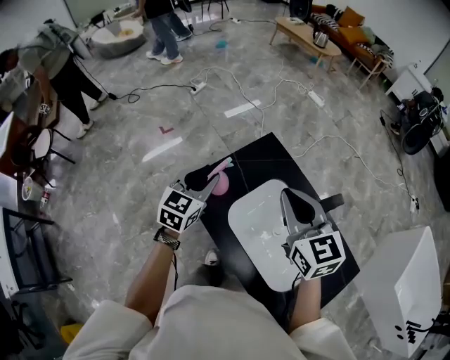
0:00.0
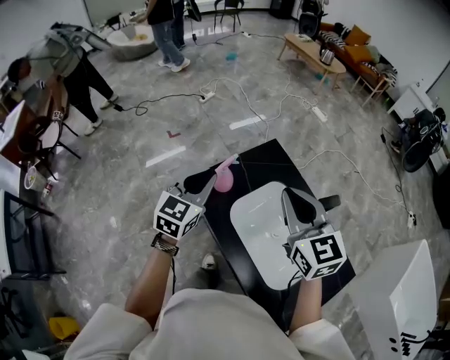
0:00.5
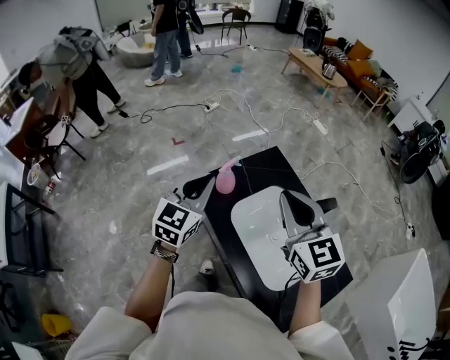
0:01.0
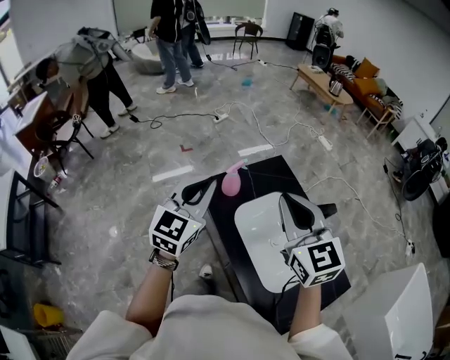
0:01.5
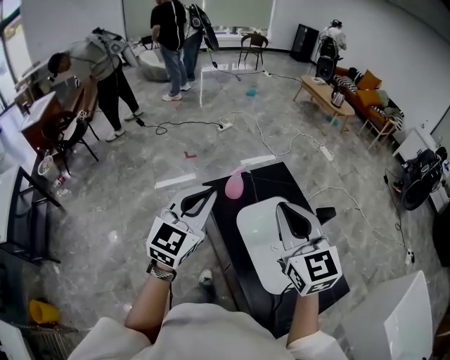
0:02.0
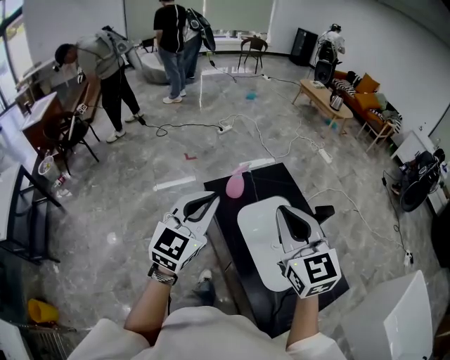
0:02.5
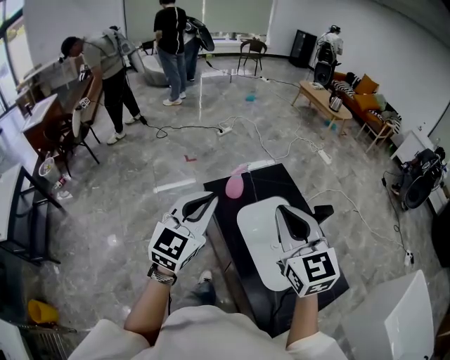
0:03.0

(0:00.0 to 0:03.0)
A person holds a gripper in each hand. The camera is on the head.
0:00.0 - 0:01.5: The two grippers go approximately 20 cm backward and upward. The left gripper swivels approximately 20 degrees, and closes.
0:01.5 - 0:03.0: The grippers both shift backward by about 10 cm.

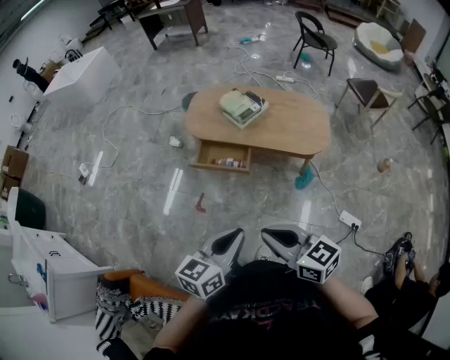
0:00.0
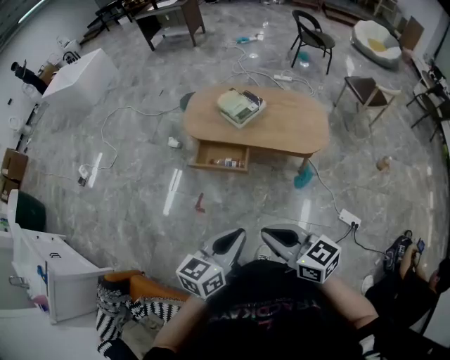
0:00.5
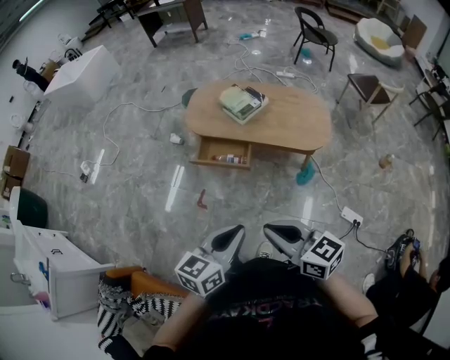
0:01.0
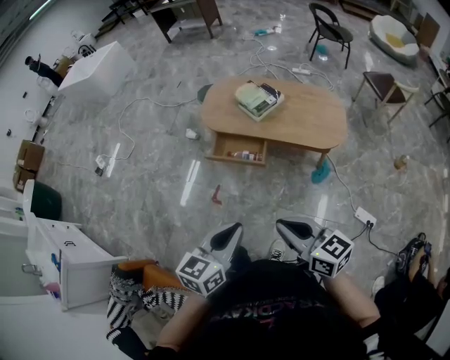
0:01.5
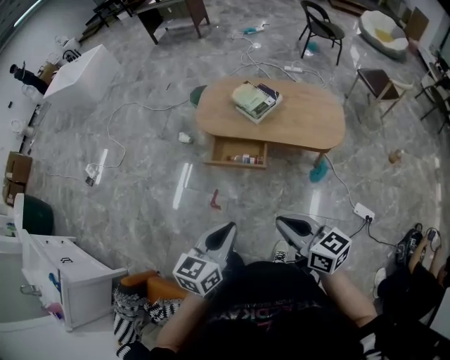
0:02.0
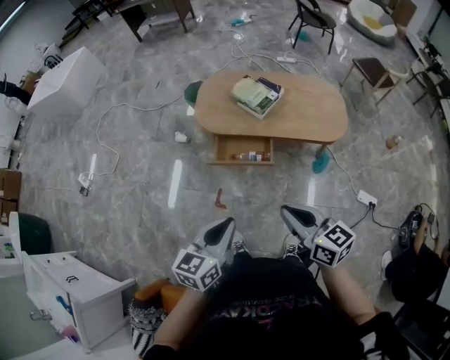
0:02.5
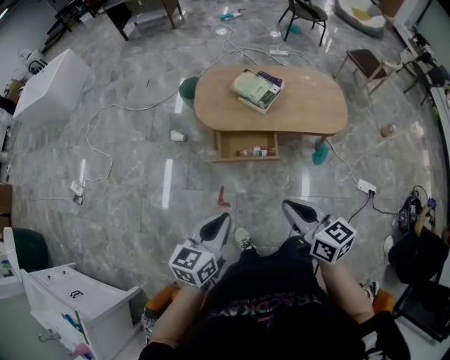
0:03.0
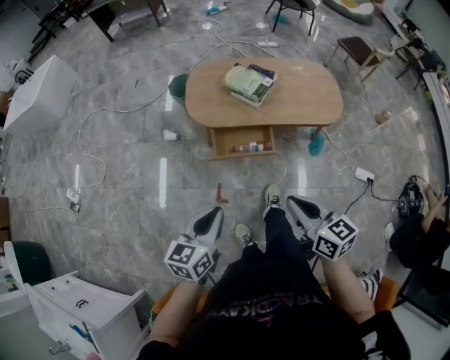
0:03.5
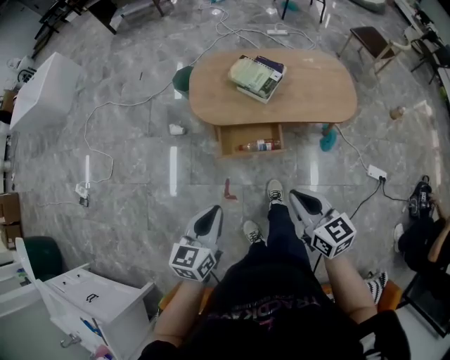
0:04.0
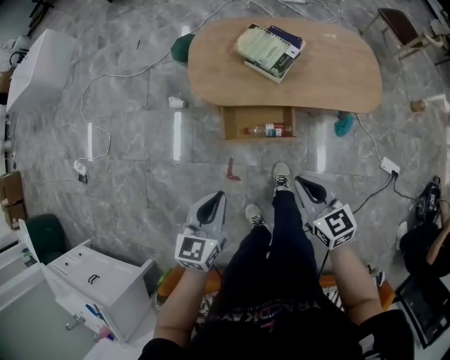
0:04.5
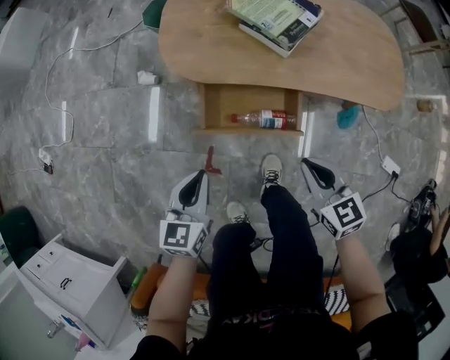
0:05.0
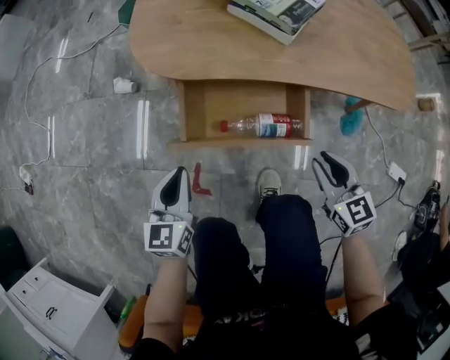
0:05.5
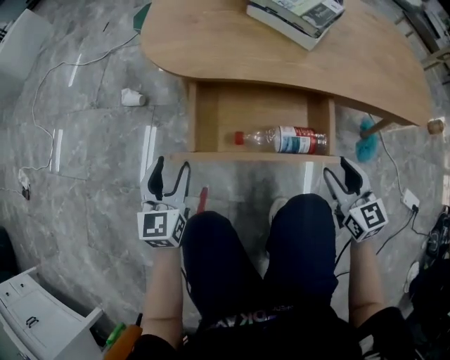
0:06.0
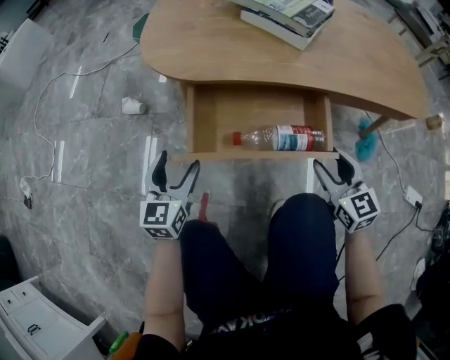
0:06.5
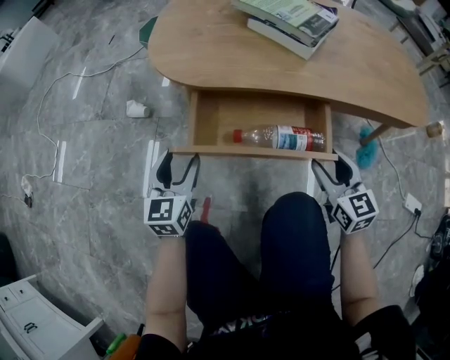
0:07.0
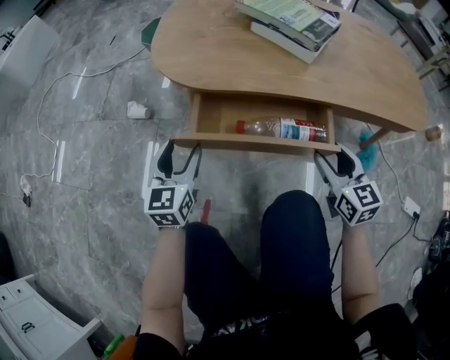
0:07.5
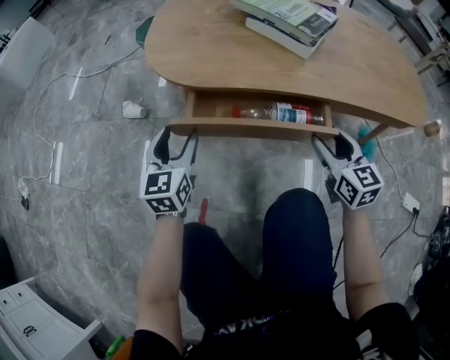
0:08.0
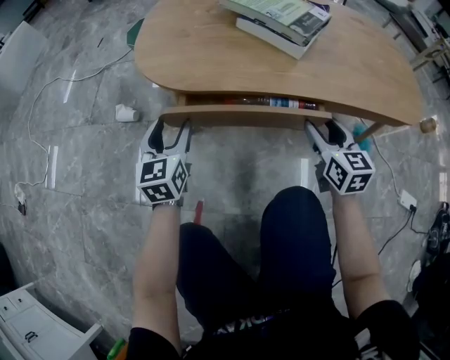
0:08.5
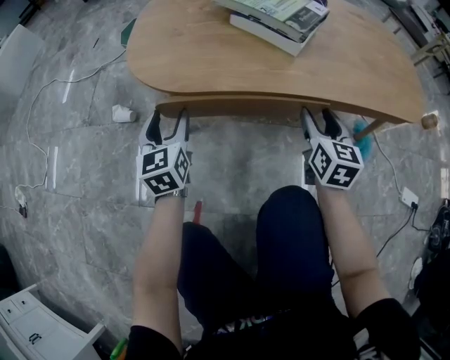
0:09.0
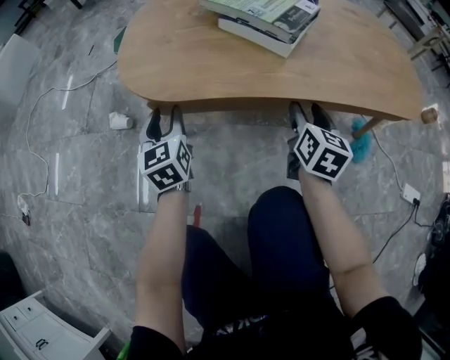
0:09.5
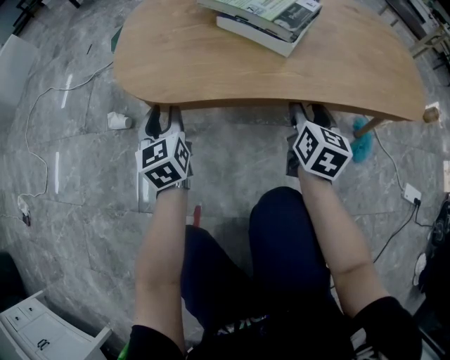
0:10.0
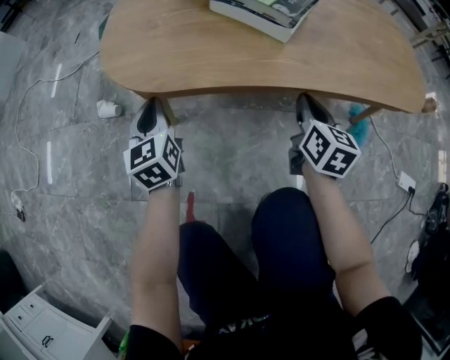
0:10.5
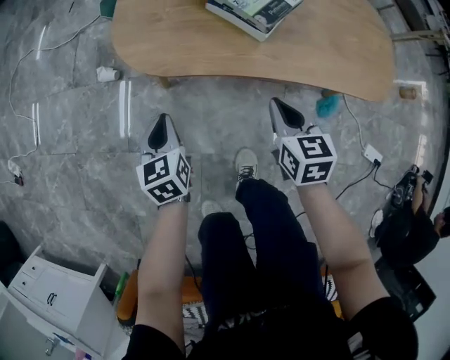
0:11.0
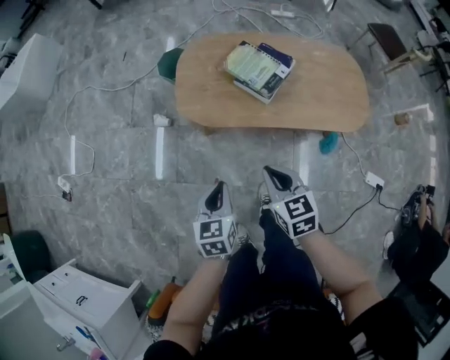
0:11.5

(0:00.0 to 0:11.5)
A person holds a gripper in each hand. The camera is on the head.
0:00.0 - 0:02.0: The right gripper heads forward, covering about 5 cm, while the left gripper goes roughly 15 cm to the left and forward.
0:02.0 - 0:04.0: The left gripper goes approximately 30 cm to the left, forward and downward, while the right gripper shifts about 20 cm forward, to the left and downward, and changes its angle by roughly 20 degrees.
0:04.0 - 0:06.0: Both grippers move downward, about 60 cm. The right gripper opens up. The left gripper rotates roughly 20 degrees, and opens its fingers.
0:06.0 - 0:07.5: The grippers both shift forward by approximately 5 cm.
0:07.5 - 0:09.5: The two grippers go approximately 10 cm forward. The right gripper turns by about 30 degrees.
0:09.5 - 0:11.5: The right gripper moves upward, approximately 40 cm, swivels some 40 degrees, and closes; the left gripper goes some 40 cm upward and backward, rotates about 20 degrees, and closes.

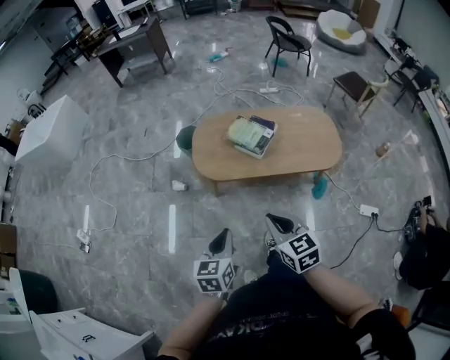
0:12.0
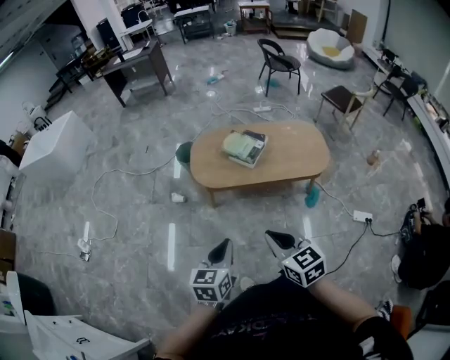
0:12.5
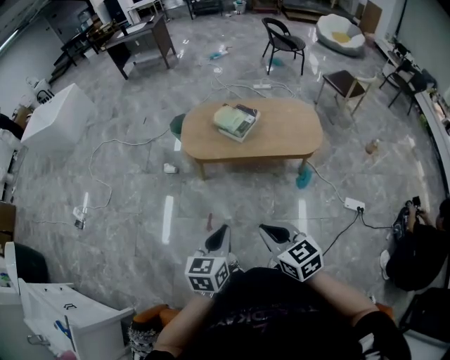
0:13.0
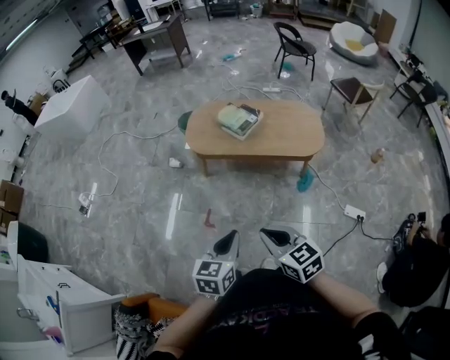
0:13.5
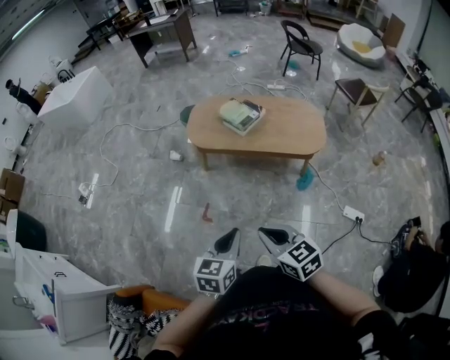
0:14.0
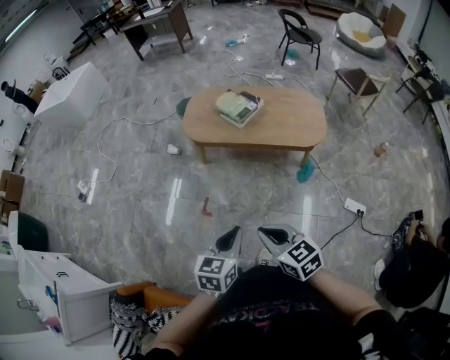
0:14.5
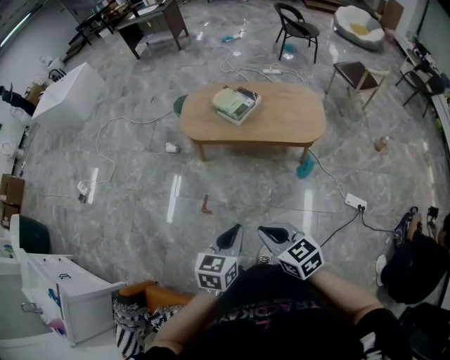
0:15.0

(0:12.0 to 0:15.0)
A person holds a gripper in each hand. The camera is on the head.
0:12.0 - 0:13.5: The grippers both shift backward and to the right by approximately 35 cm.
0:13.5 - 0:15.0: The left gripper changes place by approximately 5 cm.

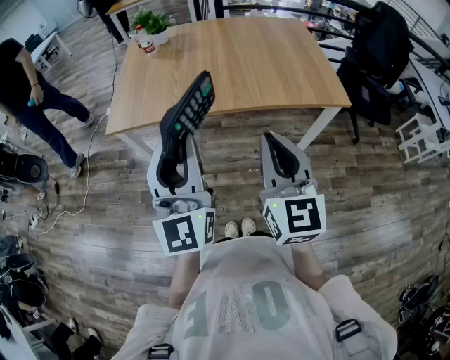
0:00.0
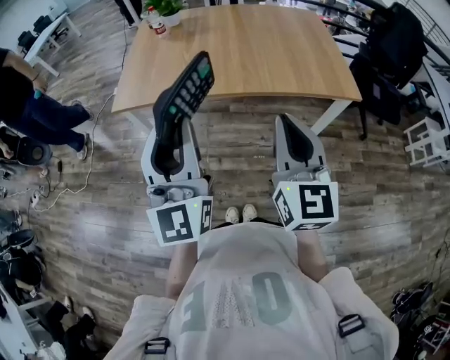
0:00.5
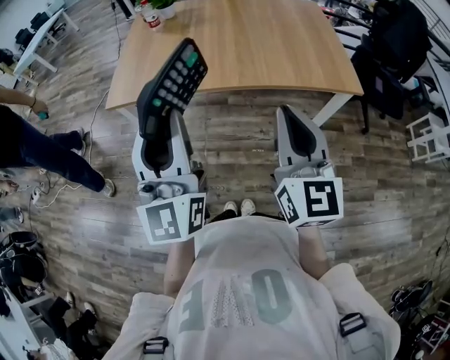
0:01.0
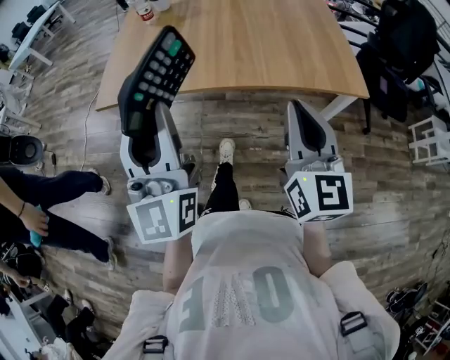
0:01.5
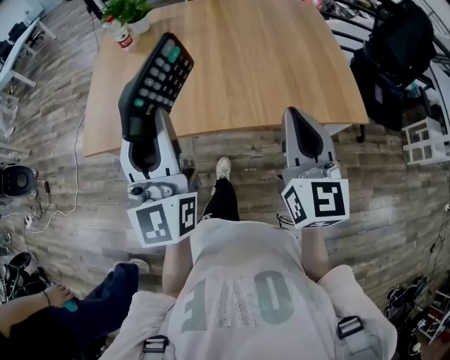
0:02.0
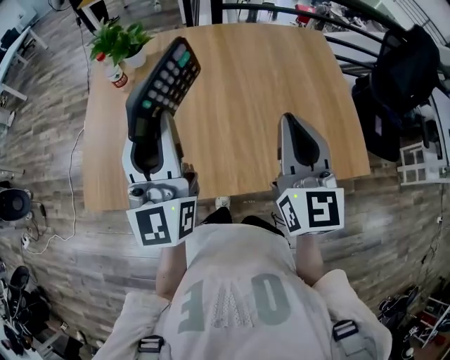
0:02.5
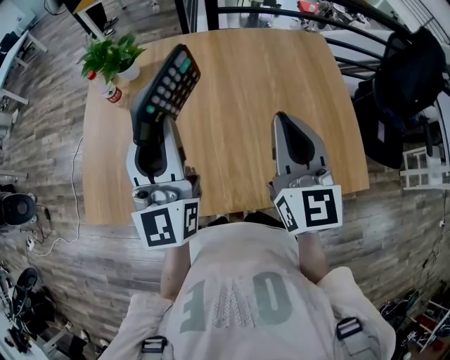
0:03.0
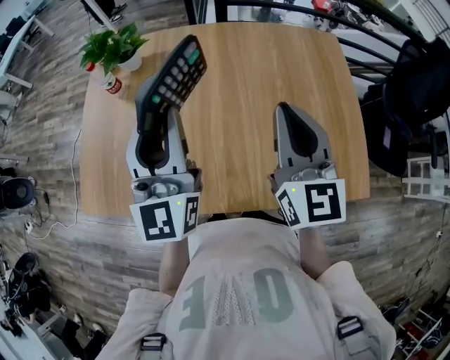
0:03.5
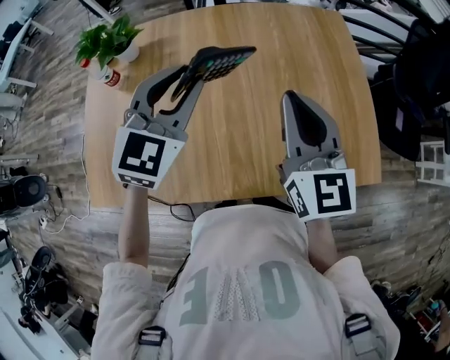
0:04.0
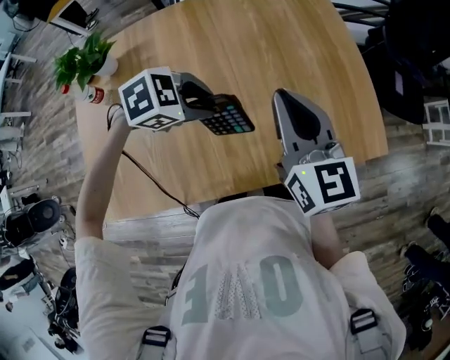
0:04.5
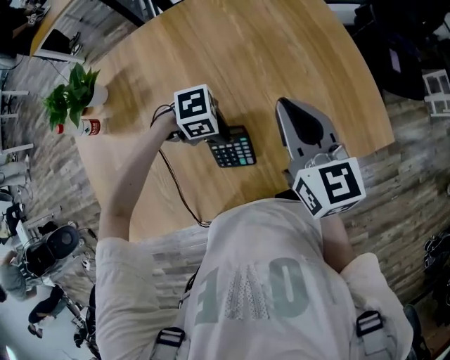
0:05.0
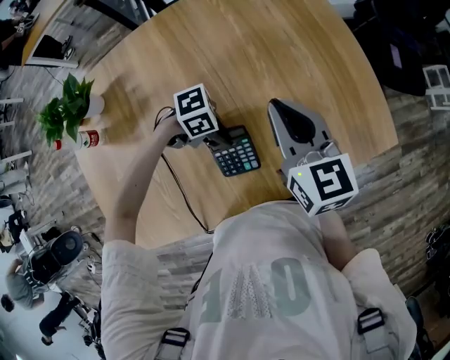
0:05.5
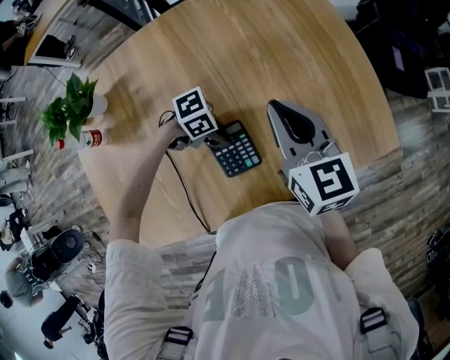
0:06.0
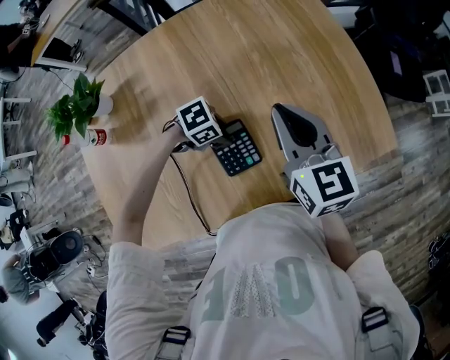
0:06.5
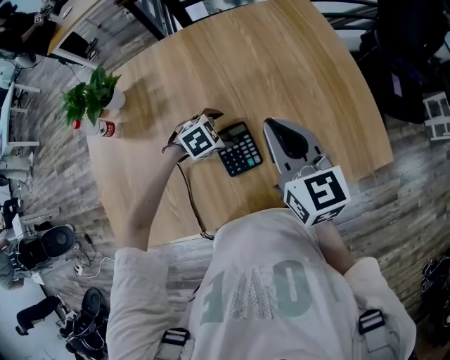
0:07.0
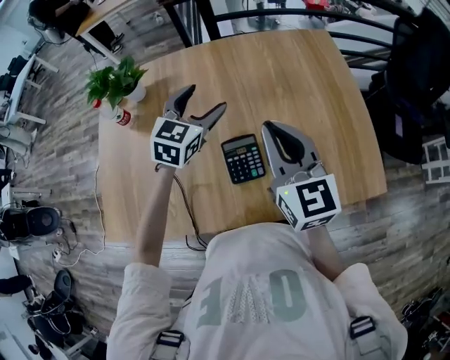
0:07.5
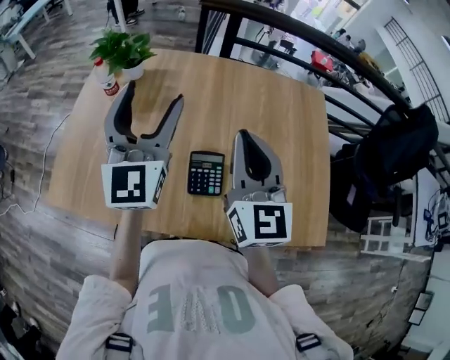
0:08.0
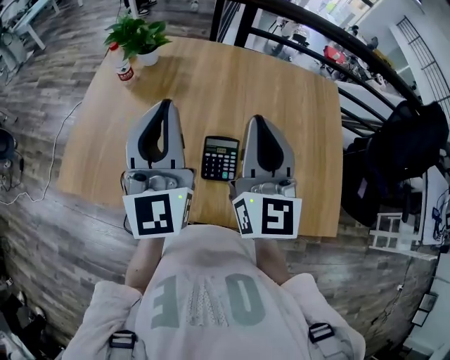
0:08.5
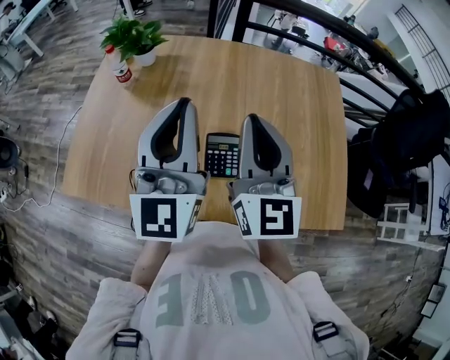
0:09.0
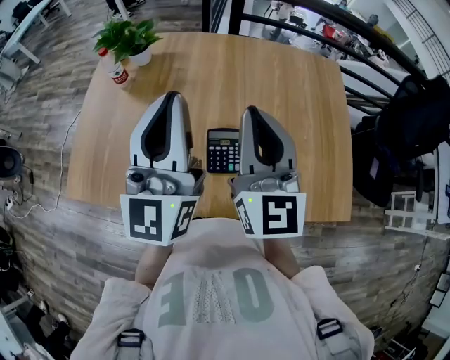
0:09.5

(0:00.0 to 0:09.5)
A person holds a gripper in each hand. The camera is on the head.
0:00.0 - 0:02.0: The right gripper travels forward and to the right by approximately 20 cm, while the left gripper travels forward by approximately 20 cm.
0:02.0 - 0:04.0: Both grippers travel together forward, some 30 cm. The left gripper angles its fingers downward, by approximately 40 degrees.
0:04.0 - 0:05.5: The left gripper travels downward by roughly 30 cm, and swivels some 100 degrees; the right gripper heads downward, covering about 10 cm.
0:05.5 - 0:07.5: The left gripper moves upward, some 20 cm, changes its angle by some 100 degrees, and opens its fingers. The right gripper shifts approximately 10 cm upward.
0:07.5 - 0:09.5: The left gripper goes about 25 cm upward and backward, angles its fingers upward, by roughly 40 degrees, and closes its fingers. The right gripper moves upward, approximately 5 cm.
